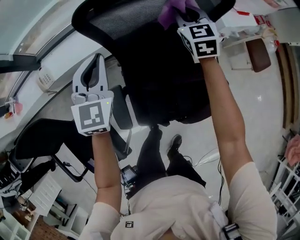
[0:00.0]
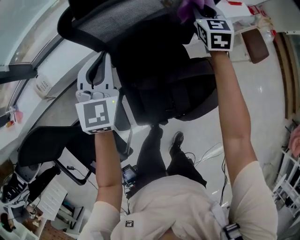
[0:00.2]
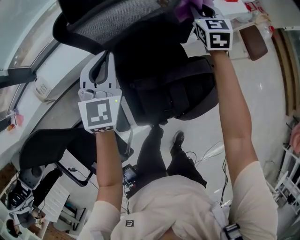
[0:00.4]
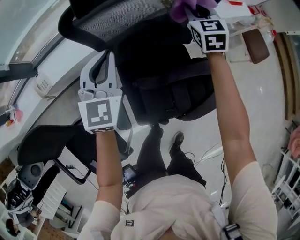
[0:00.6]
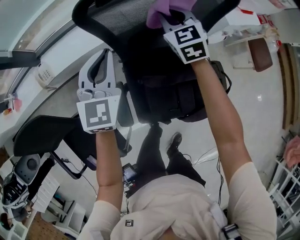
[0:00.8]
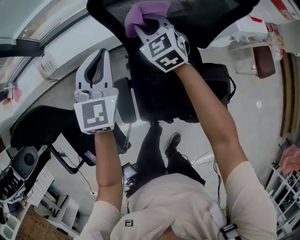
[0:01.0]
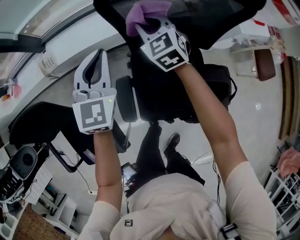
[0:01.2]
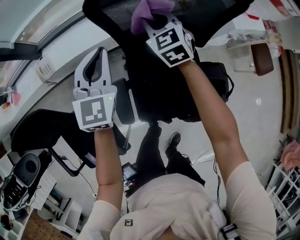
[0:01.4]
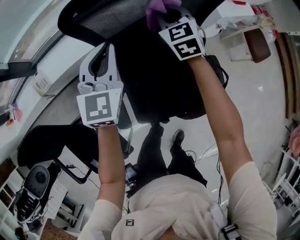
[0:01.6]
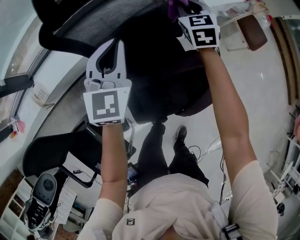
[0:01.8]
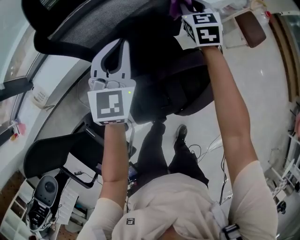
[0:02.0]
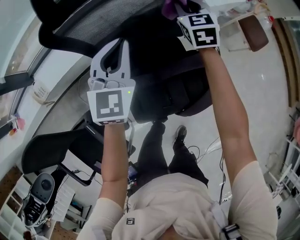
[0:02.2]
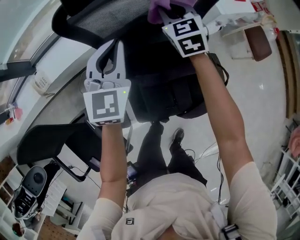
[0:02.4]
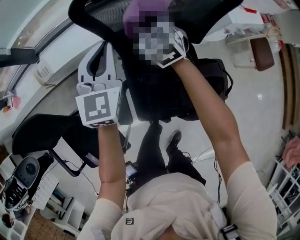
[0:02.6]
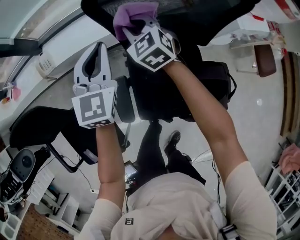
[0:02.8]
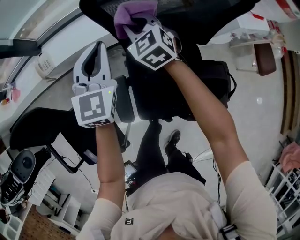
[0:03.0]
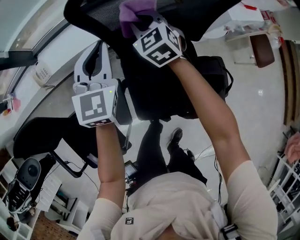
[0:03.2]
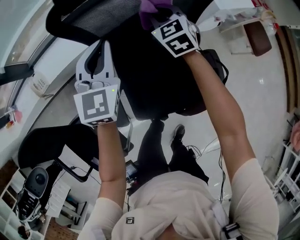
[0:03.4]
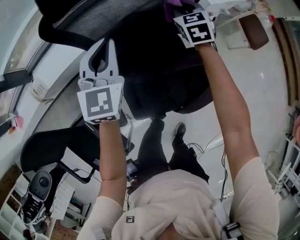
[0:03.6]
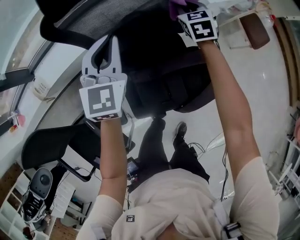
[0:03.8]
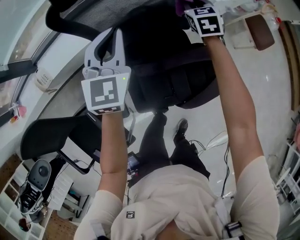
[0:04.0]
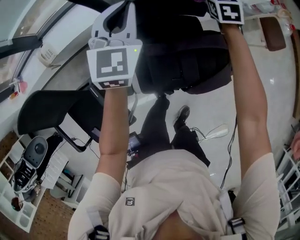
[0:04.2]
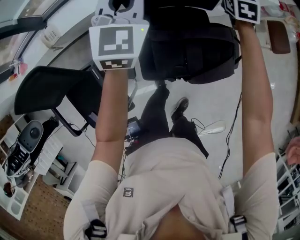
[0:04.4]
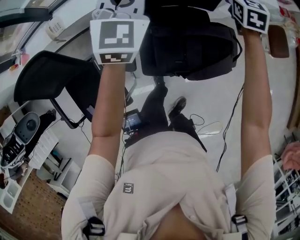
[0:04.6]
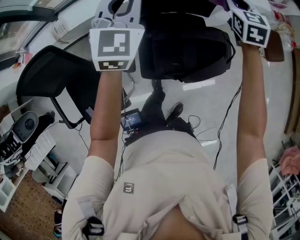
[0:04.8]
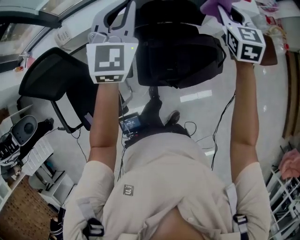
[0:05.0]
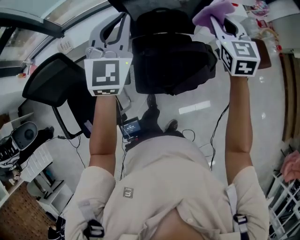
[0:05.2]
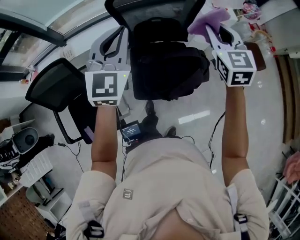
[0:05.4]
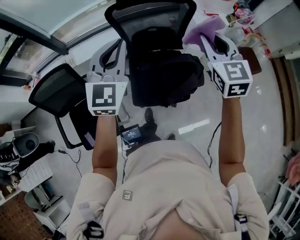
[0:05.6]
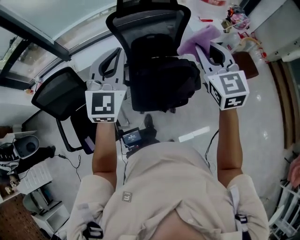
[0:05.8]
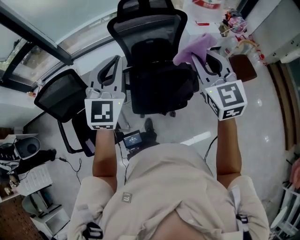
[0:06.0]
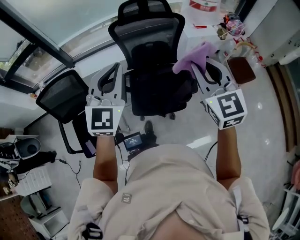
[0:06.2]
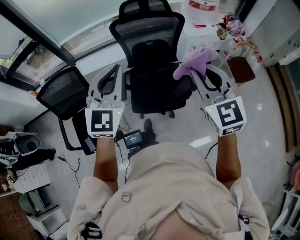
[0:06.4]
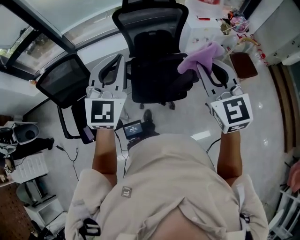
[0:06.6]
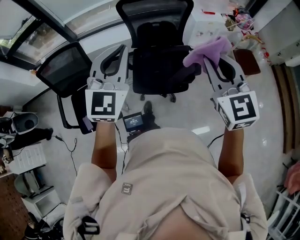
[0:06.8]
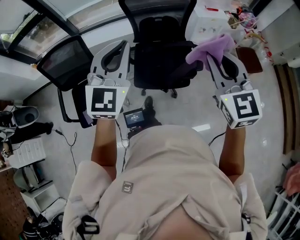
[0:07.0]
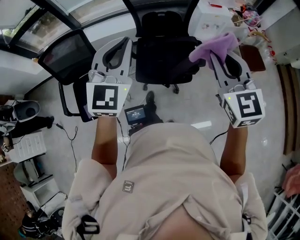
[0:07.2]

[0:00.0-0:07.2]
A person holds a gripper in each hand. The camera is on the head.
0:00.0 to 0:01.4: The right gripper swings left and right, roughly 35 cm each way, with 2 reversals, while the left gripper goes to the right and returns, some 10 cm each way.
0:02.8 to 0:04.4: The right gripper changes place by some 35 cm, and swivels about 30 degrees; the left gripper ends up approximately 15 cm from where it was.
0:04.4 to 0:05.8: Both grippers travel together backward and upward, approximately 50 cm. The right gripper swivels roughly 30 degrees.
0:05.8 to 0:07.2: Both grippers travel together backward, approximately 20 cm.

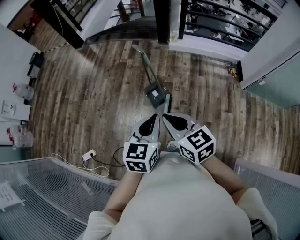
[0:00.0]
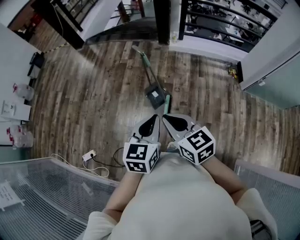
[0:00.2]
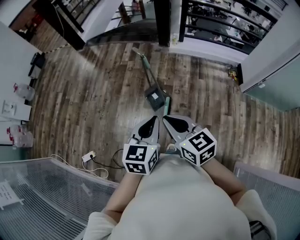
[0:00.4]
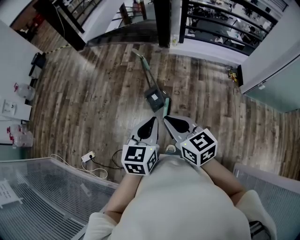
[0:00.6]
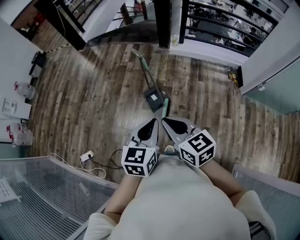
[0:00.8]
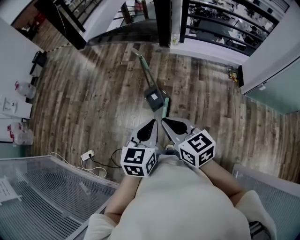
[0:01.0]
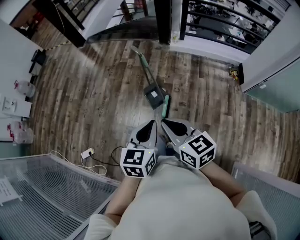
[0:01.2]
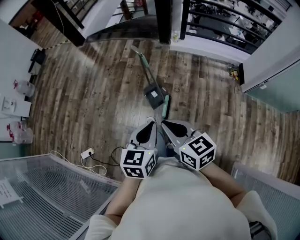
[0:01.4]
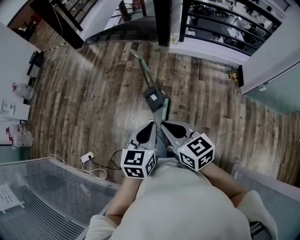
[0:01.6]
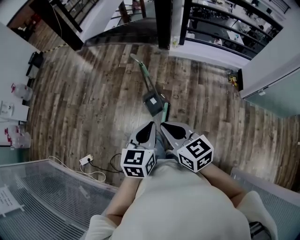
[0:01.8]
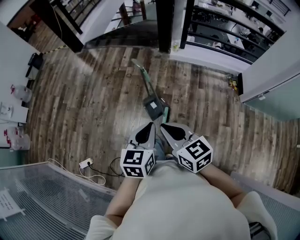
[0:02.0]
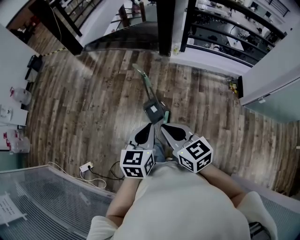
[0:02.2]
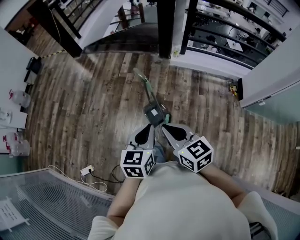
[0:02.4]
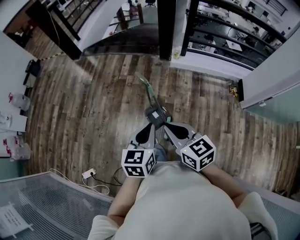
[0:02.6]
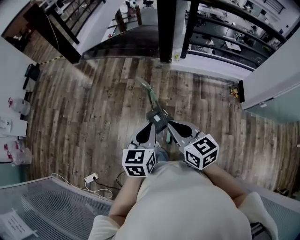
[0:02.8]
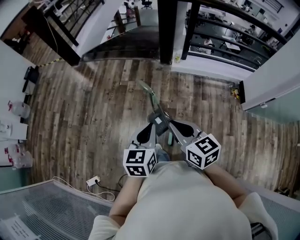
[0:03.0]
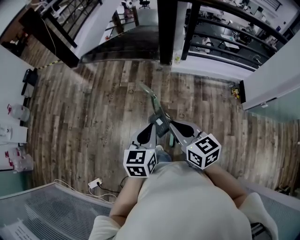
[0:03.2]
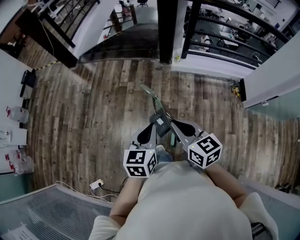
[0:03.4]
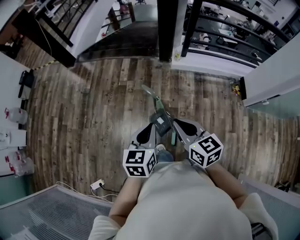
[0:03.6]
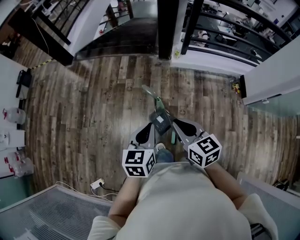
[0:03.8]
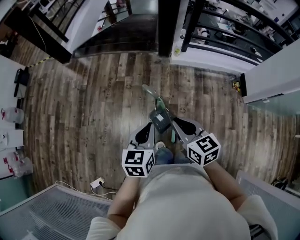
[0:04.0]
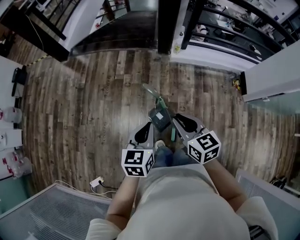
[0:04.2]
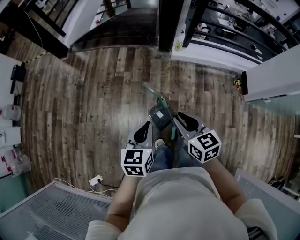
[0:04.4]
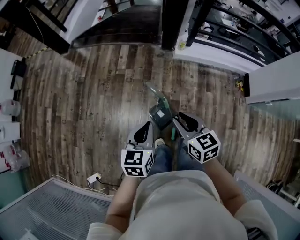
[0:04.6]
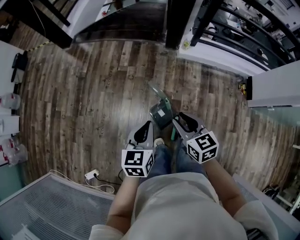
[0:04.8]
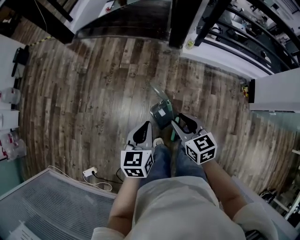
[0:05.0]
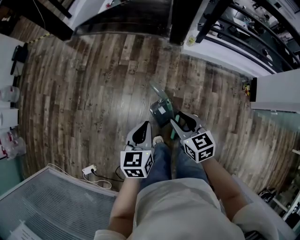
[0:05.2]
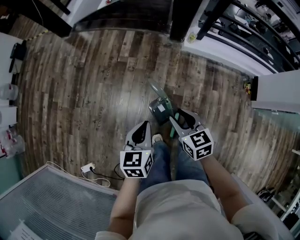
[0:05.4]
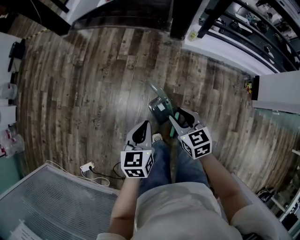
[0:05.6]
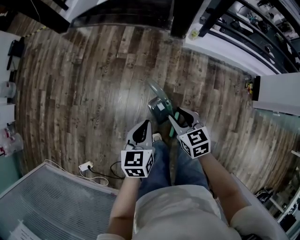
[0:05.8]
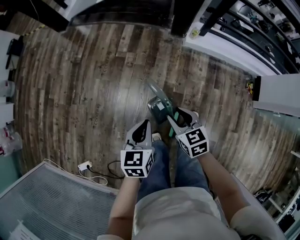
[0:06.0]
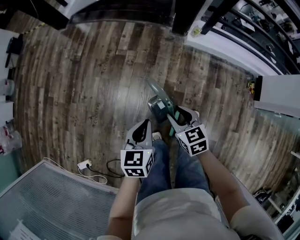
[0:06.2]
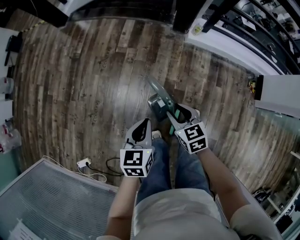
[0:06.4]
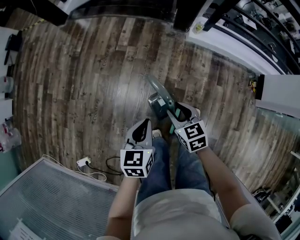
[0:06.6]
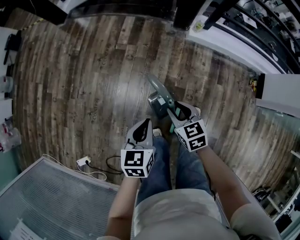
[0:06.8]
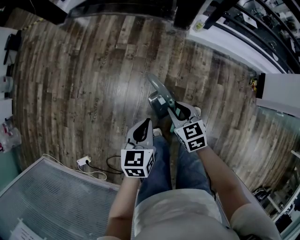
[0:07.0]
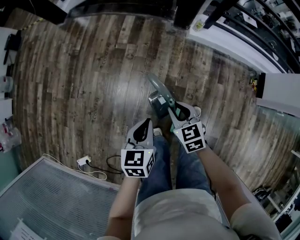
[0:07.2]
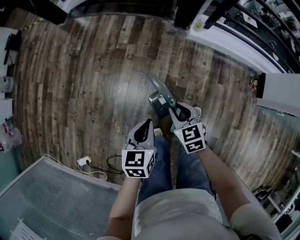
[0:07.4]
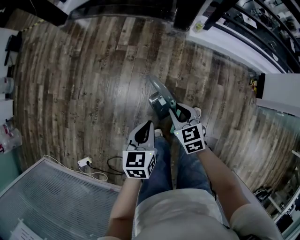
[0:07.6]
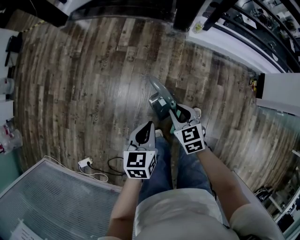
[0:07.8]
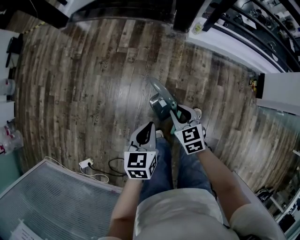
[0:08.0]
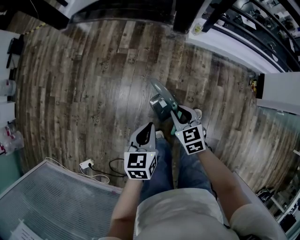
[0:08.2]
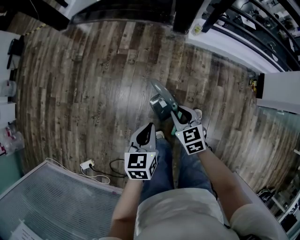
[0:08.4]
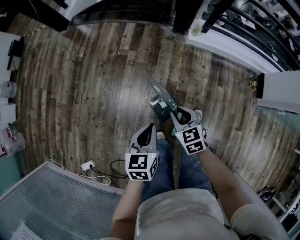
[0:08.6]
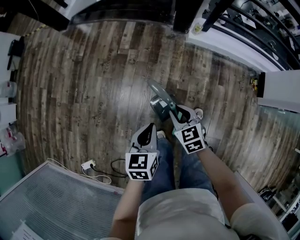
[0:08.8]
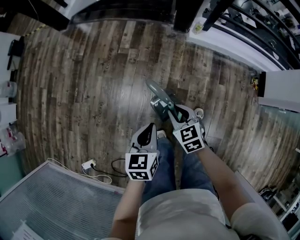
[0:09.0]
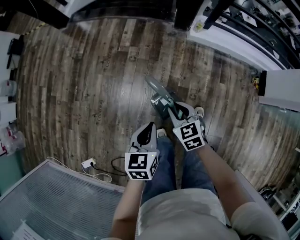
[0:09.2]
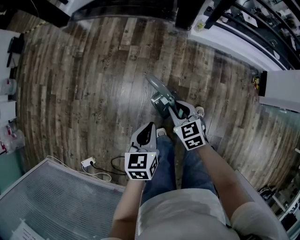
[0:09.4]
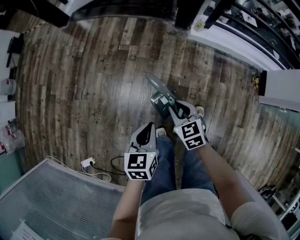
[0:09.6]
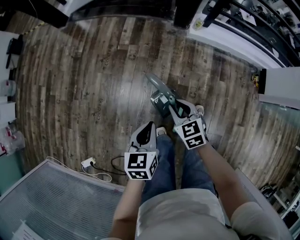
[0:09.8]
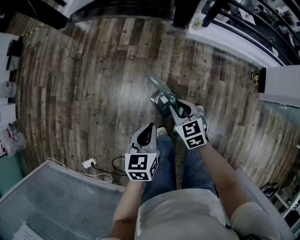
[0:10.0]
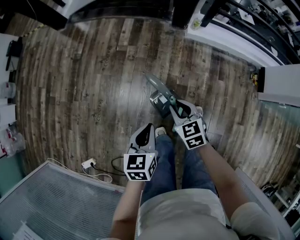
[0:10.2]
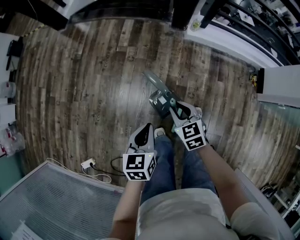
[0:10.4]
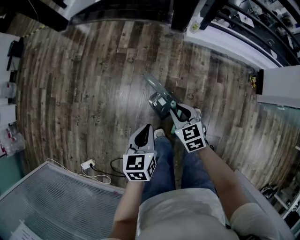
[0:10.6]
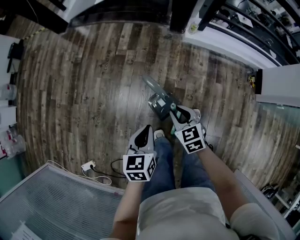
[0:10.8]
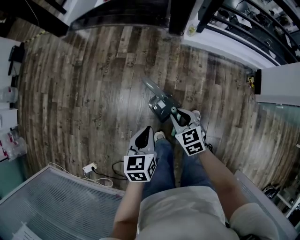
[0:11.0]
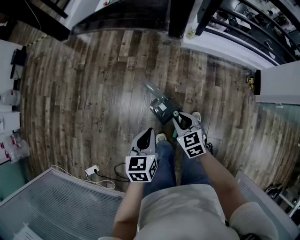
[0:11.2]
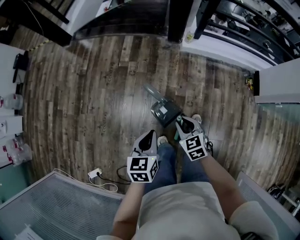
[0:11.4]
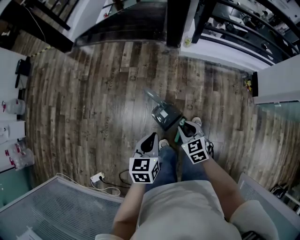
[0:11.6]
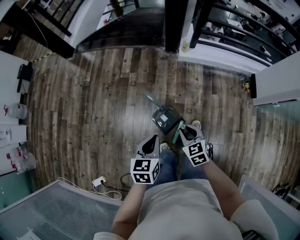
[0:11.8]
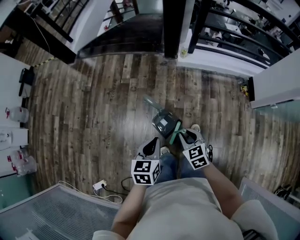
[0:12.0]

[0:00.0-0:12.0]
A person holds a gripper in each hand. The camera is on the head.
0:00.0 to 0:01.6: The grippers make only small movements.
0:01.6 to 0:03.0: The grippers both shift forward by some 25 cm.
0:03.0 to 0:04.4: The right gripper moves forward and downward, roughly 15 cm, and opens up. The left gripper shifts some 15 cm forward, downward and to the left.
0:04.4 to 0:06.0: The right gripper heads downward, covering roughly 20 cm, while the left gripper travels downward and forward by some 15 cm.
0:06.0 to 0:10.4: The grippers make only small movements.
0:10.4 to 0:12.0: The left gripper goes some 10 cm upward. The right gripper is displaced backward, upward and to the right by approximately 15 cm.

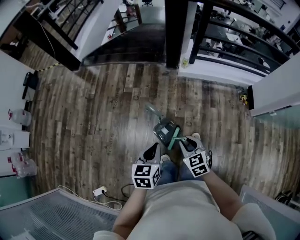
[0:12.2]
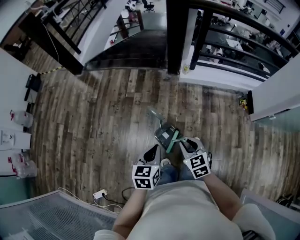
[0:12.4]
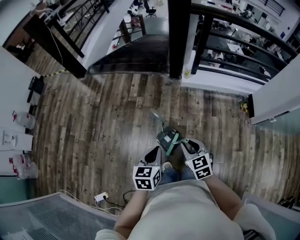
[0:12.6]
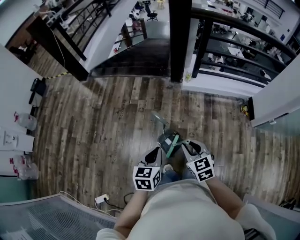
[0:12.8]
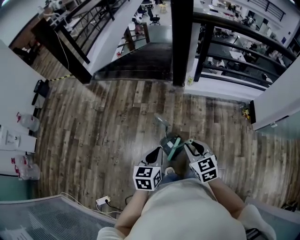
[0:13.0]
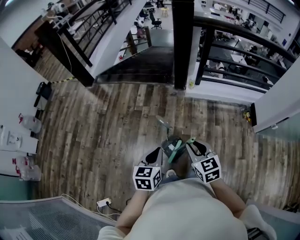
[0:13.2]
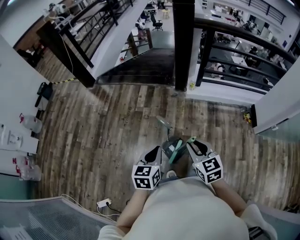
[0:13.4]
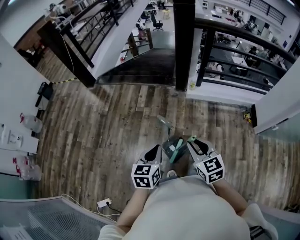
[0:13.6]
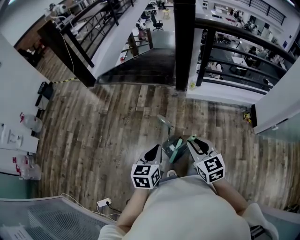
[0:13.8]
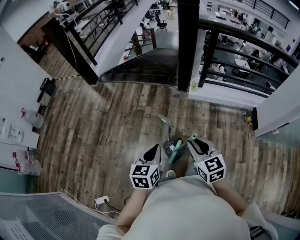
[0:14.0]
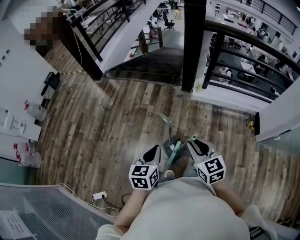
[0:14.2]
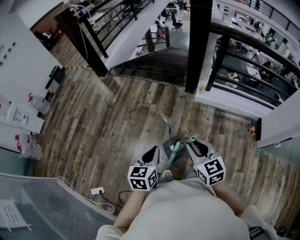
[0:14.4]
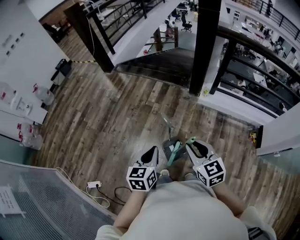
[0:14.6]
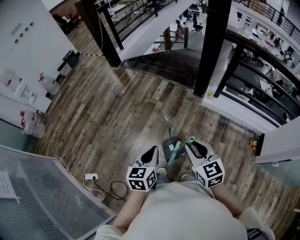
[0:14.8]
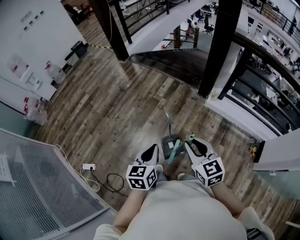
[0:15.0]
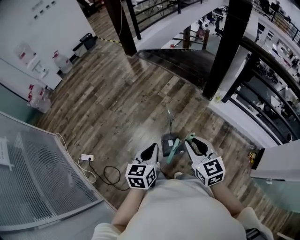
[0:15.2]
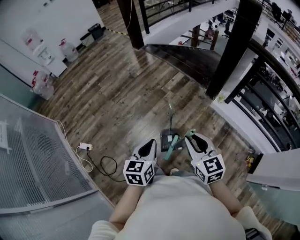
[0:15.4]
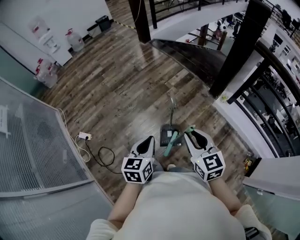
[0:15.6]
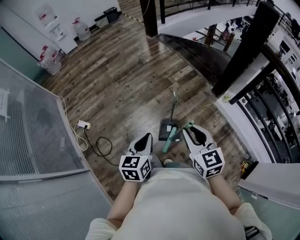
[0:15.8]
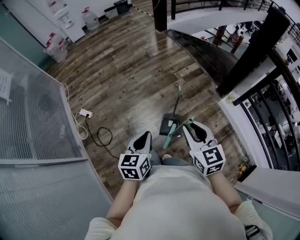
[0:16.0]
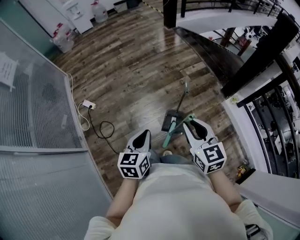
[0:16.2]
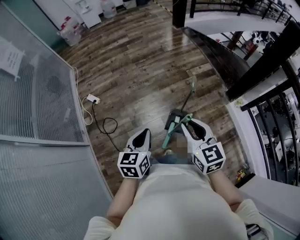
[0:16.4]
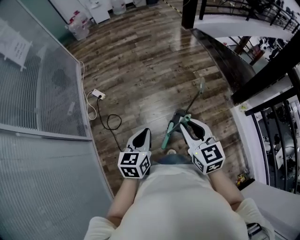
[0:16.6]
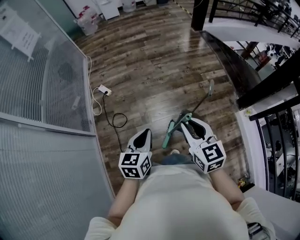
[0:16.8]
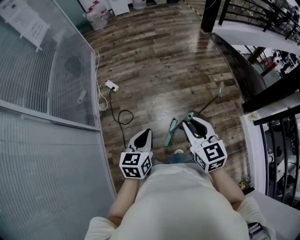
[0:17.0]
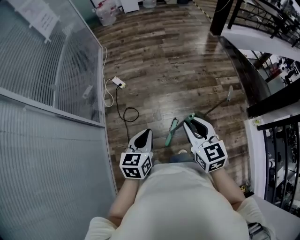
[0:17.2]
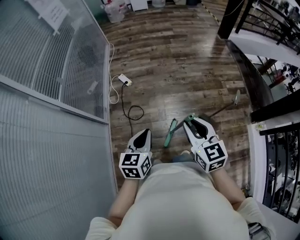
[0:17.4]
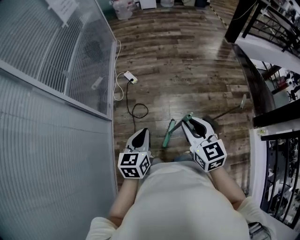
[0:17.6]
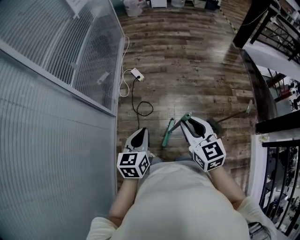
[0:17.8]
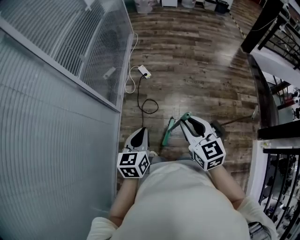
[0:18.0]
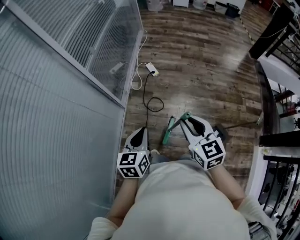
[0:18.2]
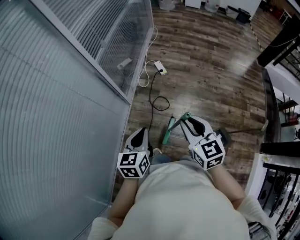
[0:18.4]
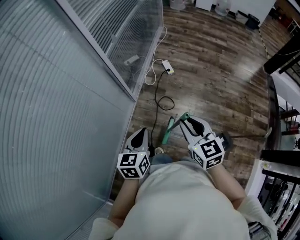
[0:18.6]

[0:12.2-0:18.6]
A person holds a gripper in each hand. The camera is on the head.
0:12.2 to 0:13.8: The right gripper goes some 15 cm upward, while the left gripper is displaced upward by roughly 10 cm.
0:13.8 to 0:15.4: The left gripper ends up about 10 cm from where it was, and turns by some 30 degrees. The right gripper changes place by roughly 10 cm, and rotates about 30 degrees.
0:15.4 to 0:17.0: The right gripper ends up about 25 cm from where it was, and turns by approximately 30 degrees; the left gripper shifts by roughly 25 cm, and rotates roughly 40 degrees.
0:17.0 to 0:18.6: The right gripper ends up some 35 cm from where it was, and swivels some 30 degrees, while the left gripper ends up approximately 35 cm from where it was, and changes its angle by approximately 30 degrees.
